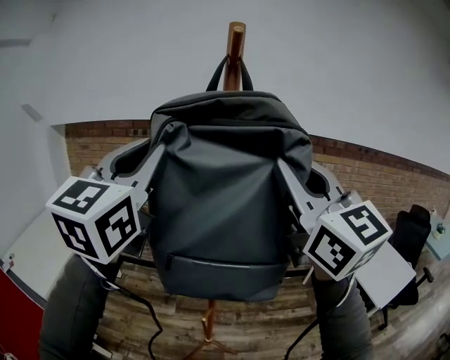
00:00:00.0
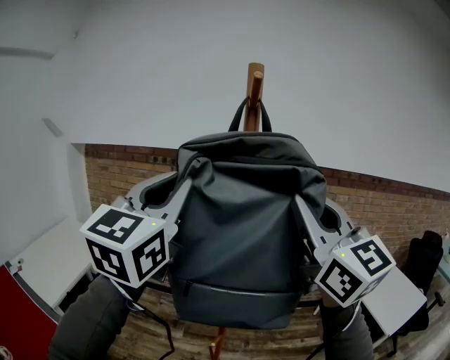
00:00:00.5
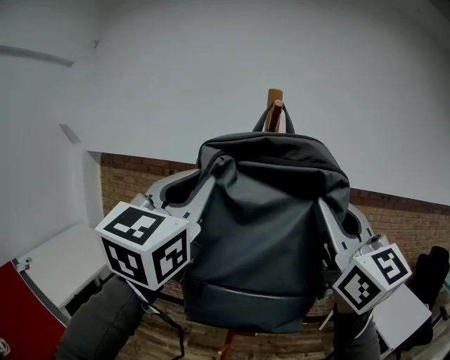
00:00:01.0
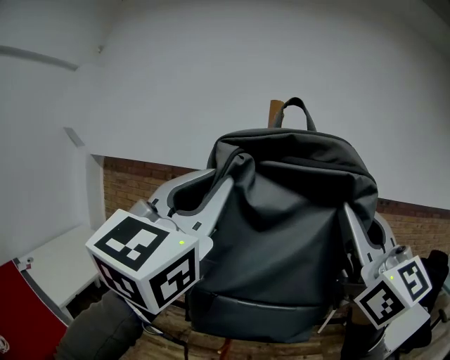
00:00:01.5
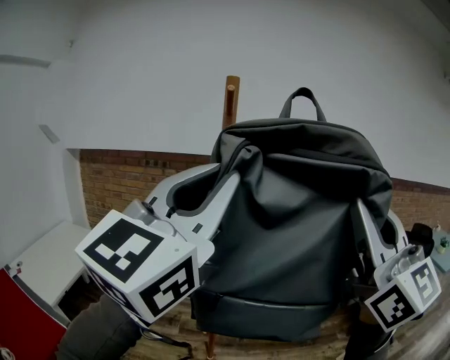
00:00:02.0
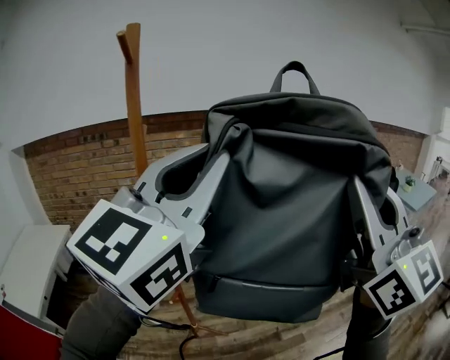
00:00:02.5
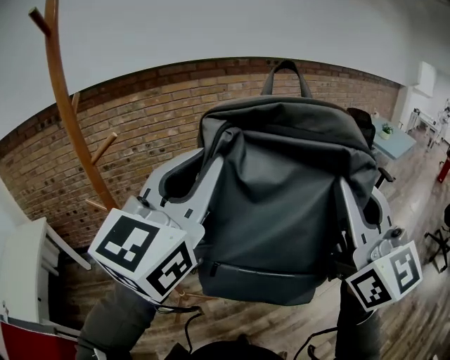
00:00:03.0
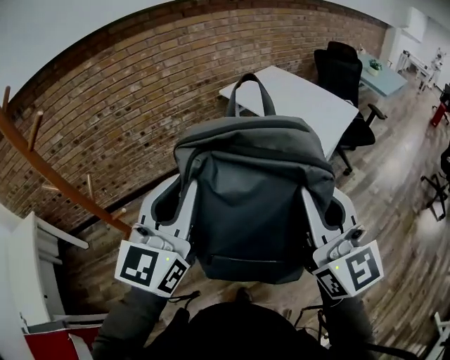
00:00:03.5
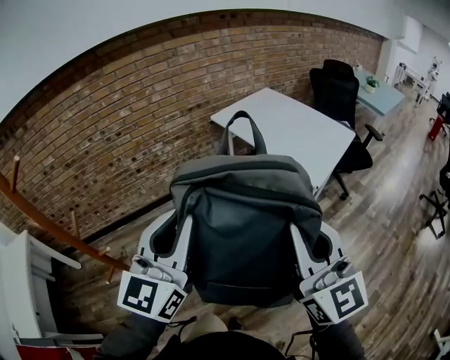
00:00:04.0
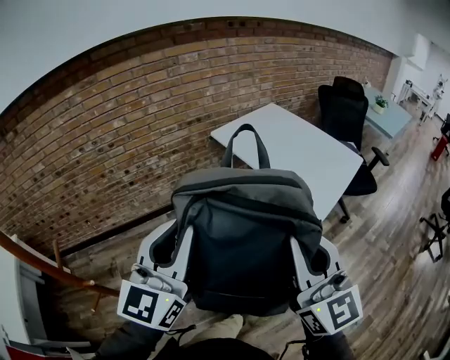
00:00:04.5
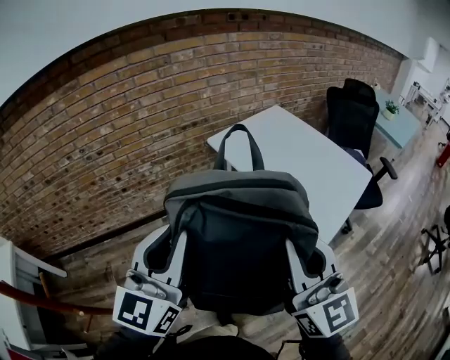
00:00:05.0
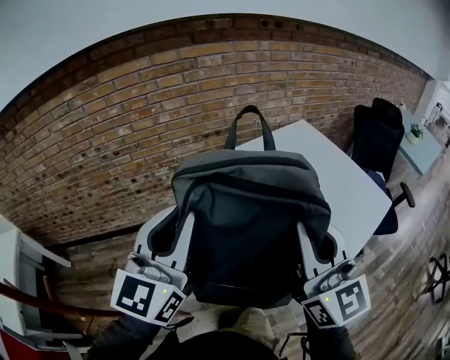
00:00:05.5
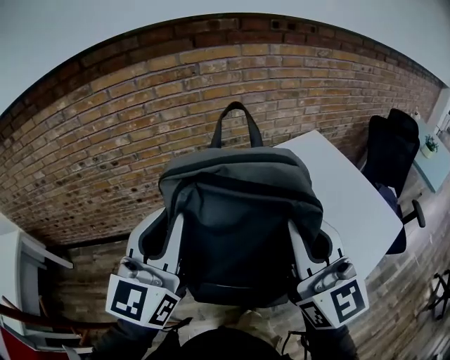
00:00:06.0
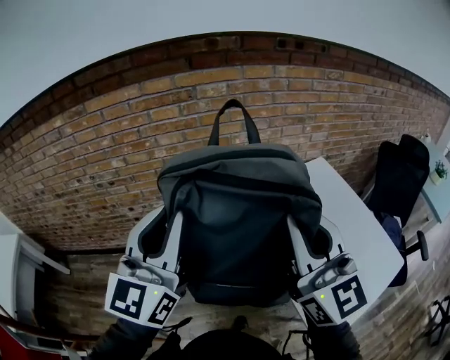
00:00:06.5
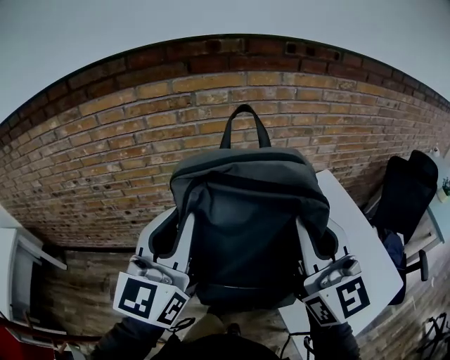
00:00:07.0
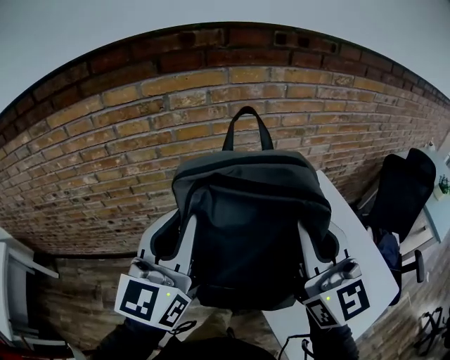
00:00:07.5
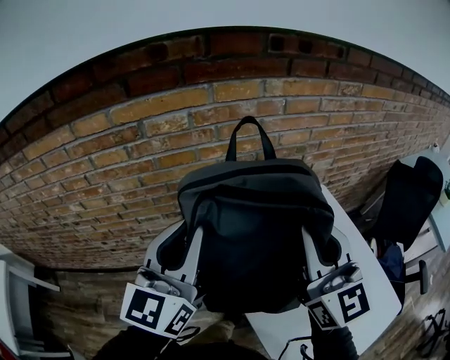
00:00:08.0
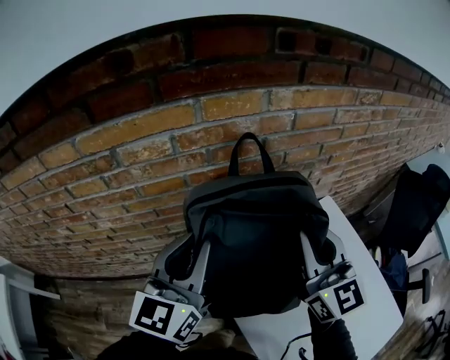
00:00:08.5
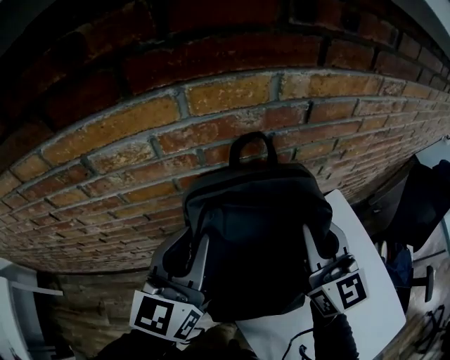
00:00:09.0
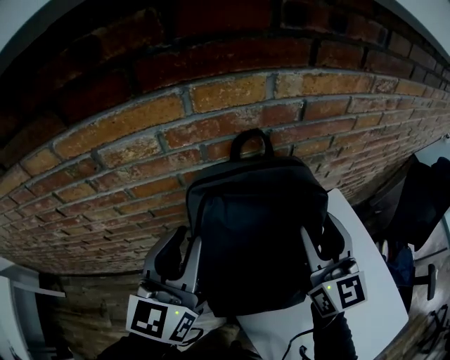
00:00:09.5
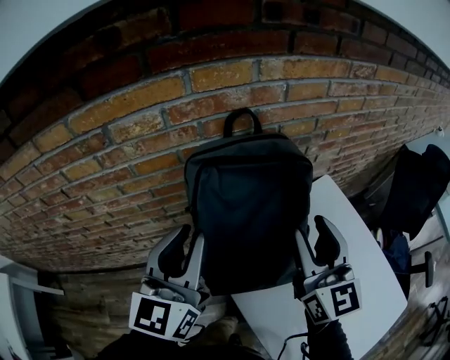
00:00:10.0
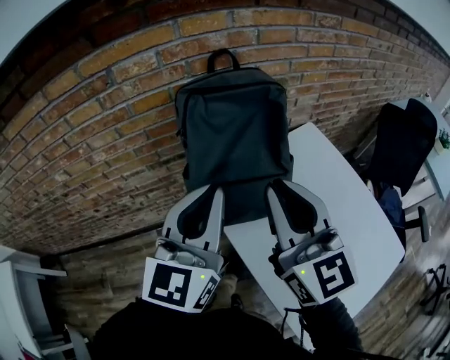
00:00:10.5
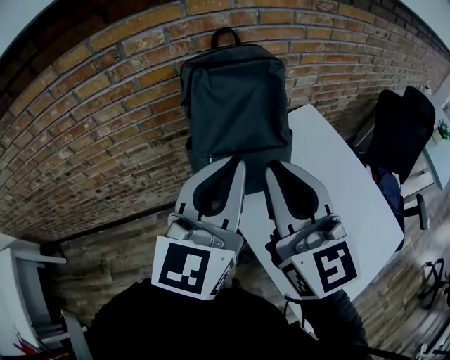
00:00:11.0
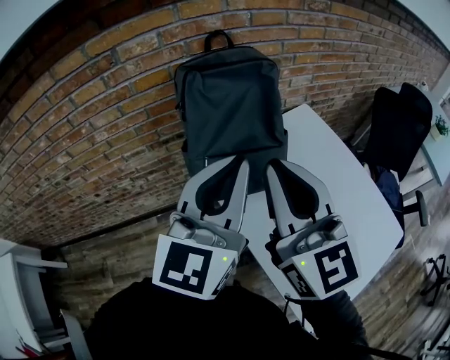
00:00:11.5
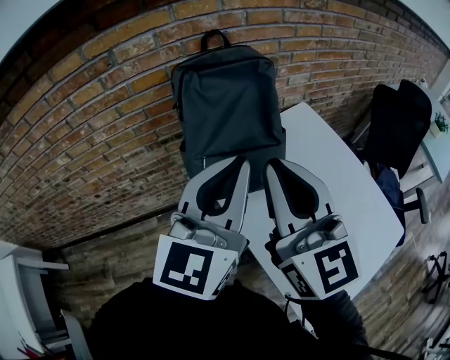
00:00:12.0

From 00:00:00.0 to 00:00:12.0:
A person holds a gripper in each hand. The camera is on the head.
From 00:00:00.0 to 00:00:02.0: The grippers both shift backward and to the right by about 20 cm.
From 00:00:02.0 to 00:00:04.0: The left gripper shifts about 50 cm downward, to the right and forward, and changes its angle by about 30 degrees. Meanwhile the right gripper goes roughly 50 cm downward and to the right, and swivels roughly 40 degrees.
From 00:00:04.0 to 00:00:06.0: The two grippers travel together, forward, about 40 cm.
From 00:00:06.0 to 00:00:08.0: Both grippers travel together forward and to the right, roughly 40 cm.
From 00:00:08.0 to 00:00:10.0: The right gripper heads downward and forward, covering approximately 10 cm, and opens up; the left gripper heads forward and downward, covering about 10 cm.
From 00:00:10.0 to 00:00:12.0: The left gripper shifts roughly 20 cm backward and to the right, and closes up. The right gripper is displaced backward by about 20 cm, and closes up.

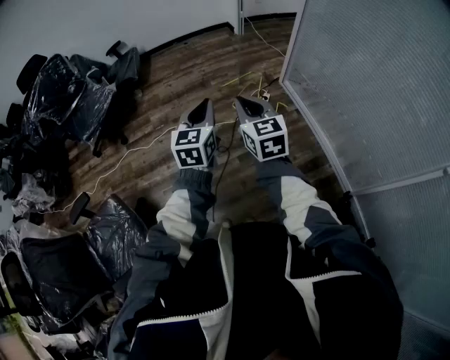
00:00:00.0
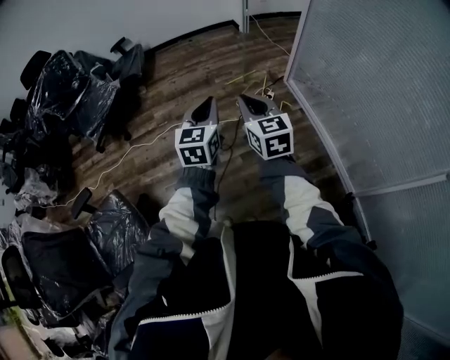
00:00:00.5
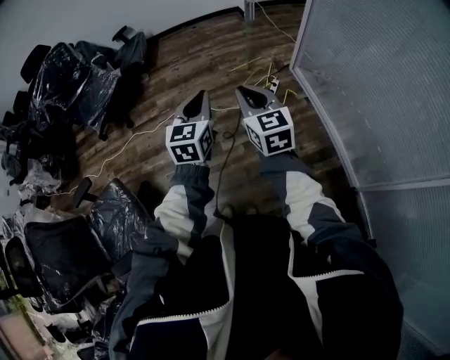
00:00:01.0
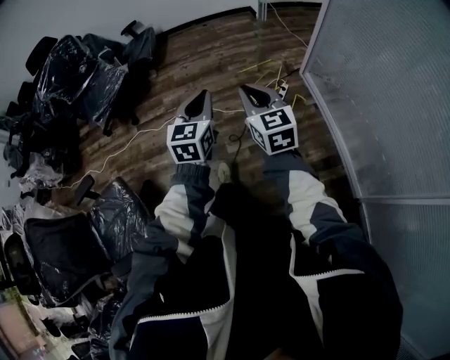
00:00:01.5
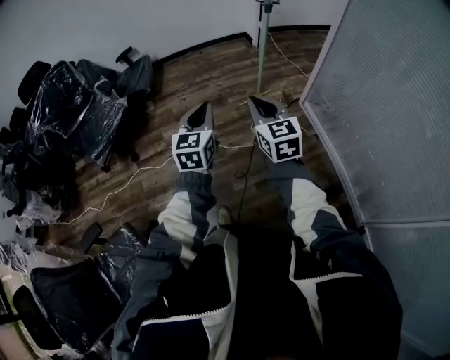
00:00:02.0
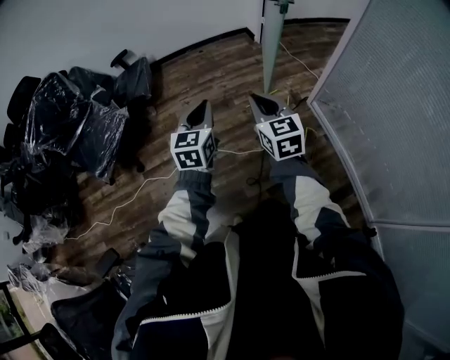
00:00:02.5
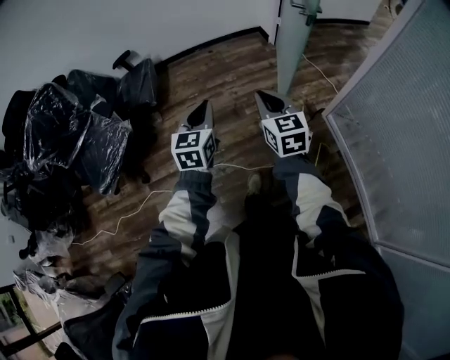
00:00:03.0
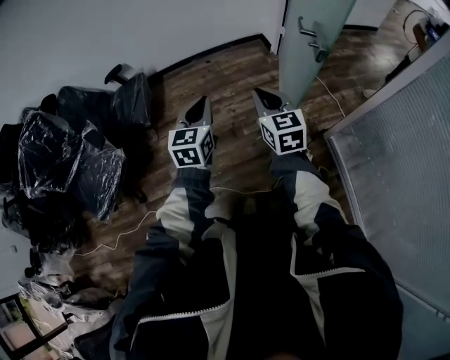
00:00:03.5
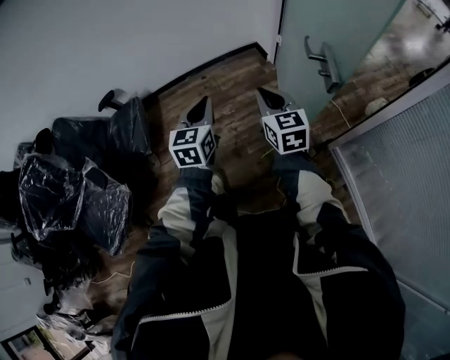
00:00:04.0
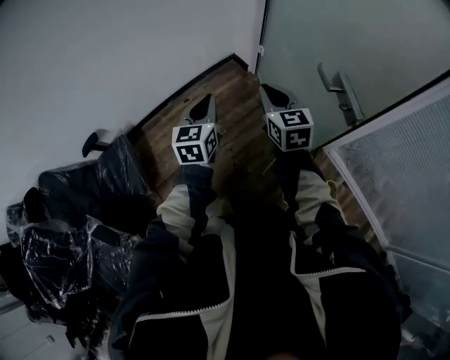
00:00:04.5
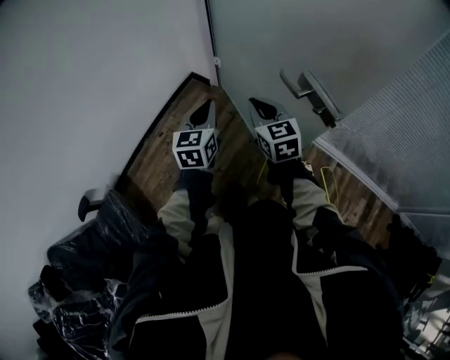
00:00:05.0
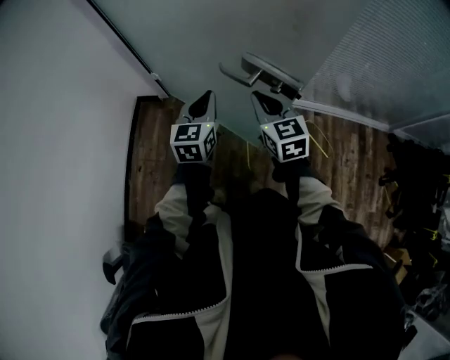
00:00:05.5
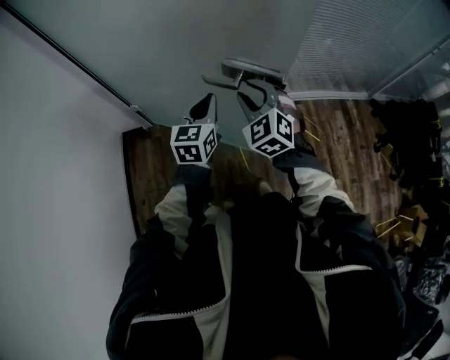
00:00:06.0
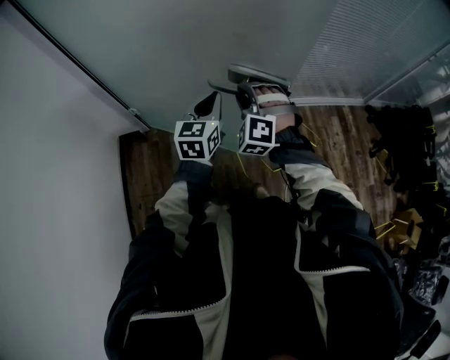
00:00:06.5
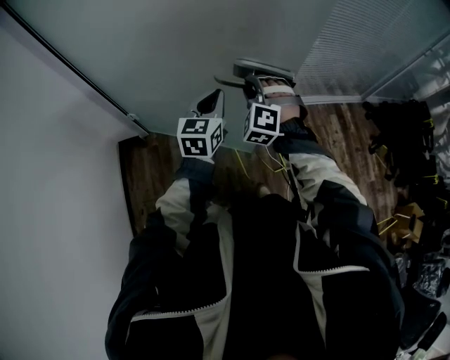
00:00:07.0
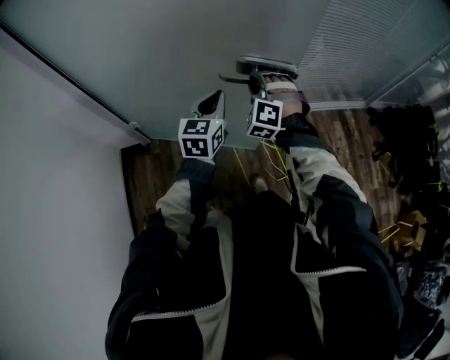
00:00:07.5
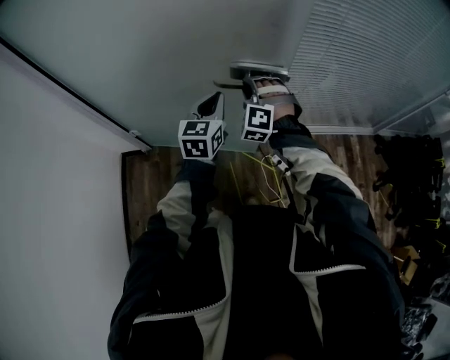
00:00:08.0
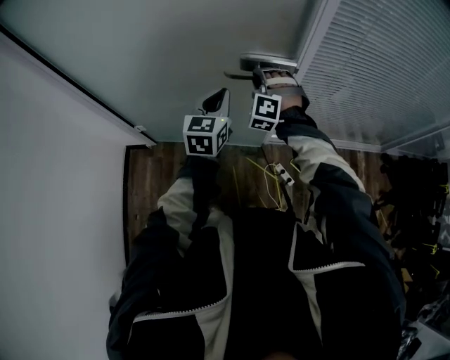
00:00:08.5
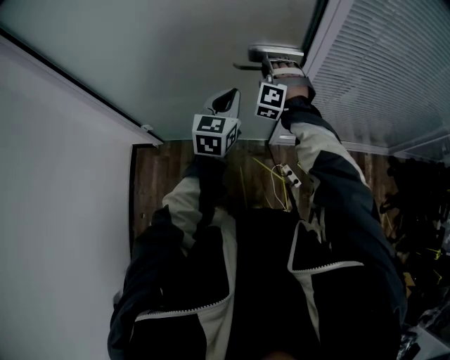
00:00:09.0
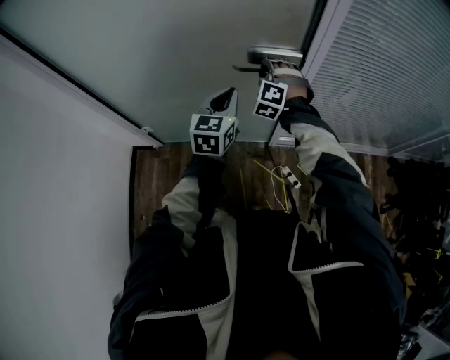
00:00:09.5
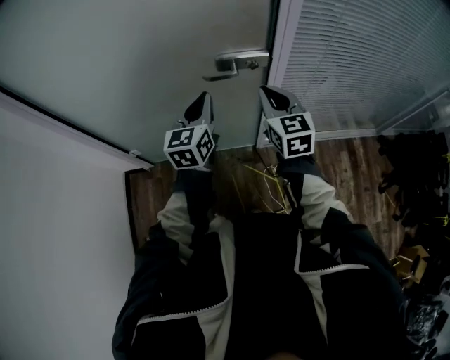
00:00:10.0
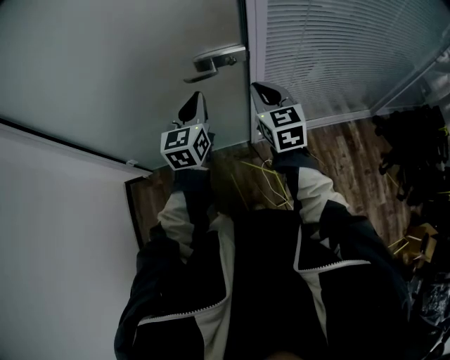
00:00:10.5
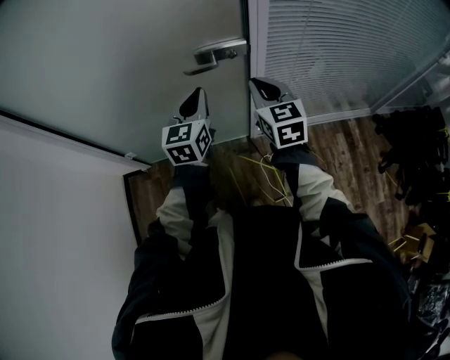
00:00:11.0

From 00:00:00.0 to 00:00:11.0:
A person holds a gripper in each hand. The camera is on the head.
From 00:00:00.0 to 00:00:02.0: The right gripper shifts some 20 cm forward; the left gripper moves forward and to the left, about 20 cm.
From 00:00:02.0 to 00:00:03.5: Both grippers are carried forward, approximately 50 cm.
From 00:00:03.5 to 00:00:05.5: The left gripper changes place by about 40 cm, and rotates some 70 degrees. The right gripper shifts by approximately 30 cm, and swivels some 60 degrees.
From 00:00:05.5 to 00:00:07.5: The right gripper moves roughly 15 cm, twists approximately 60 degrees counterclockwise, seen from behind, and opens up, while the left gripper moves about 10 cm, and swivels some 20 degrees.
From 00:00:07.5 to 00:00:09.0: The two grippers go some 20 cm forward.
From 00:00:09.0 to 00:00:11.0: The right gripper travels backward, to the right and upward by approximately 20 cm, rolls clockwise, seen from behind, by about 80 degrees, and closes. The left gripper shifts by roughly 5 cm.

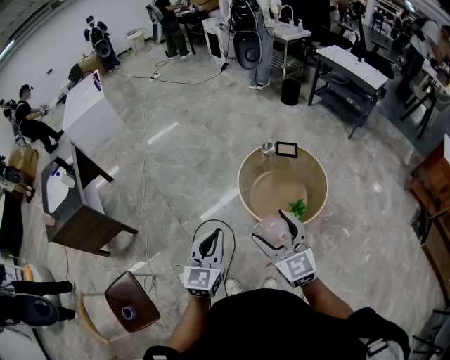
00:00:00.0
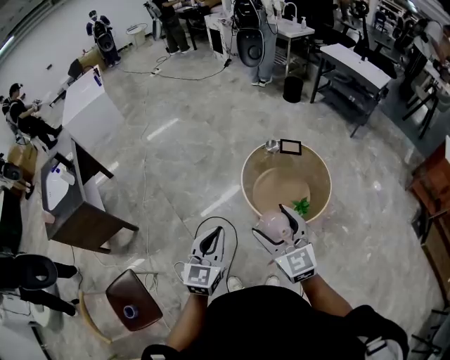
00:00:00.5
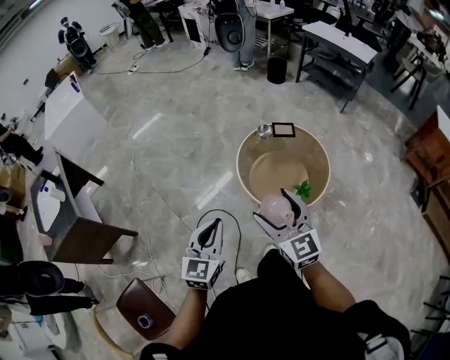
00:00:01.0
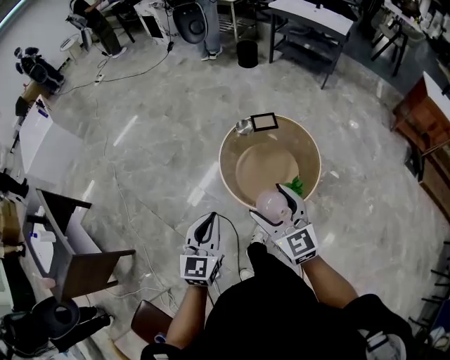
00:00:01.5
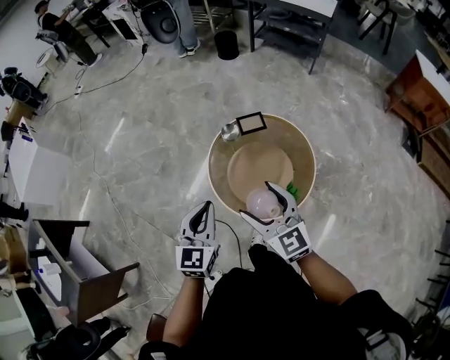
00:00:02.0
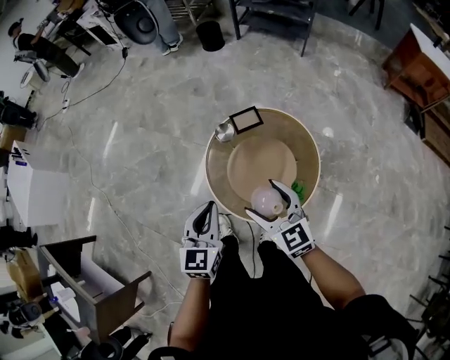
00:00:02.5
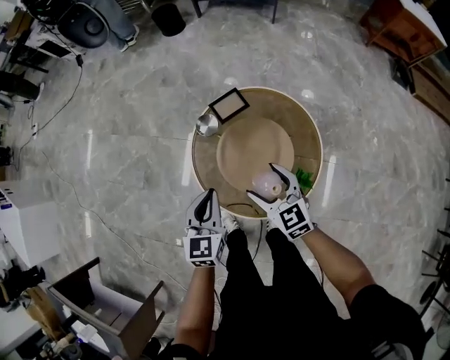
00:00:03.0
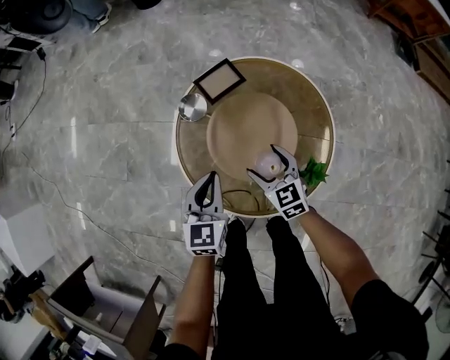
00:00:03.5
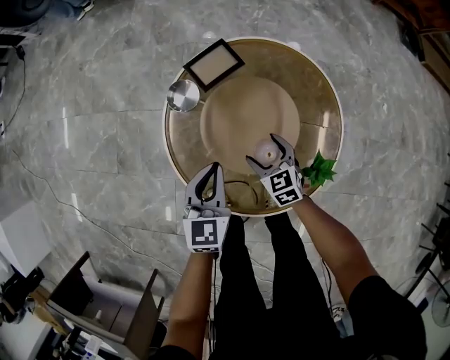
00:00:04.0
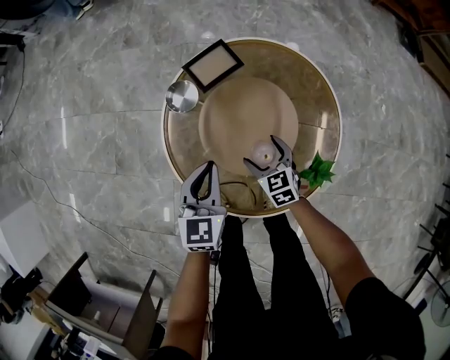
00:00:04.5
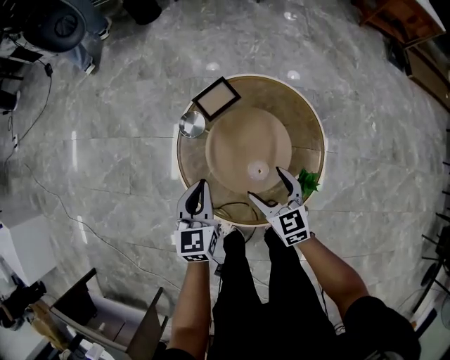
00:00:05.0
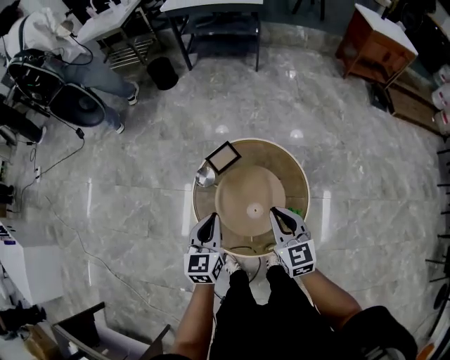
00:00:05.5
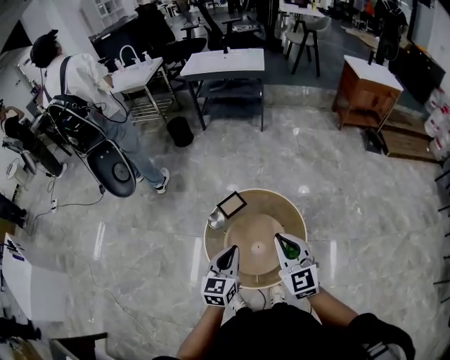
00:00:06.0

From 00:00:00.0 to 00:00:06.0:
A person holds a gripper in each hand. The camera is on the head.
From 00:00:00.0 to 00:00:02.0: The two grippers go some 25 cm forward. The left gripper swivels about 20 degrees.
From 00:00:02.0 to 00:00:04.0: The left gripper is displaced downward and forward by some 40 cm, and rotates approximately 20 degrees. The right gripper travels downward by roughly 50 cm, and tilts its fingers some 30 degrees downward.
From 00:00:04.0 to 00:00:06.0: The left gripper is displaced upward by roughly 35 cm. Meanwhile the right gripper heads upward, covering about 50 cm, tips its fingers upward by roughly 30 degrees, and closes its fingers.
